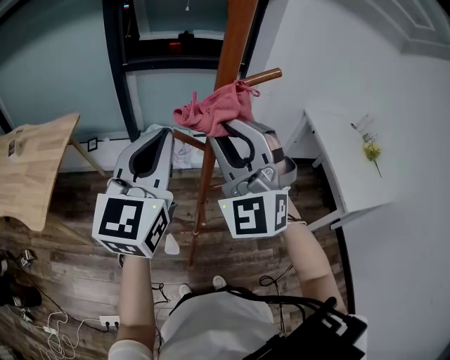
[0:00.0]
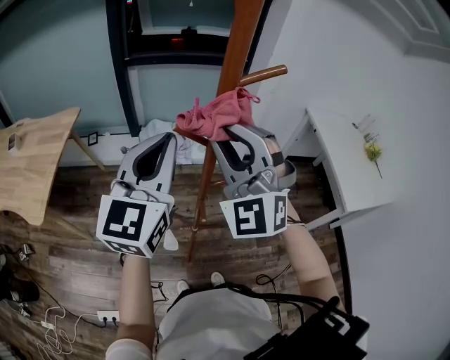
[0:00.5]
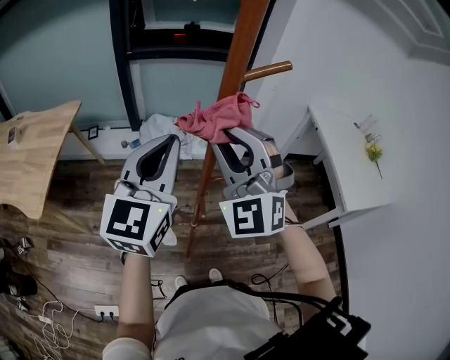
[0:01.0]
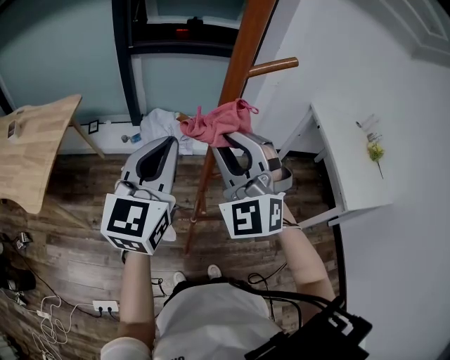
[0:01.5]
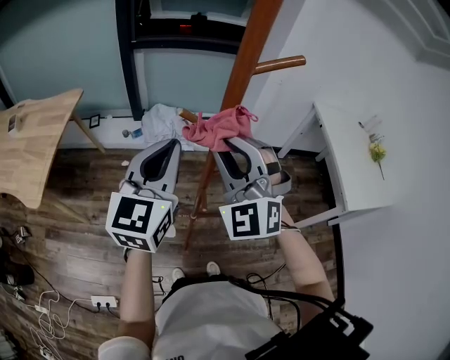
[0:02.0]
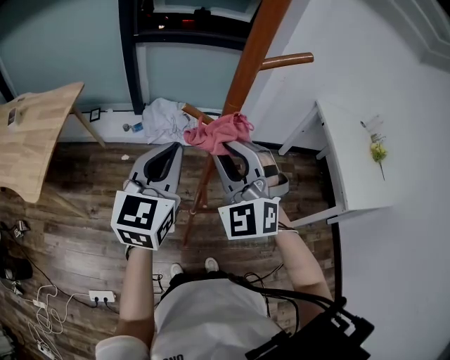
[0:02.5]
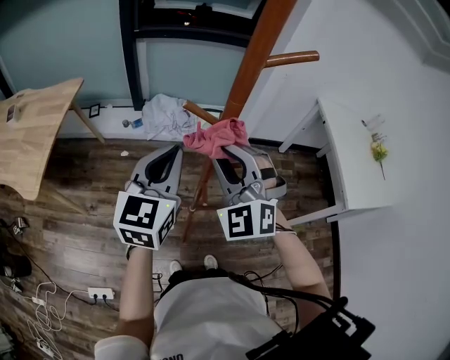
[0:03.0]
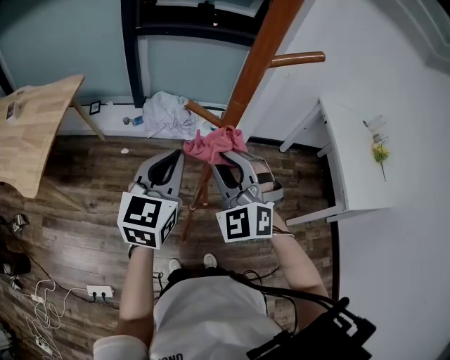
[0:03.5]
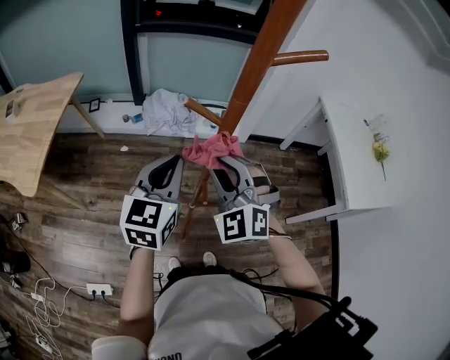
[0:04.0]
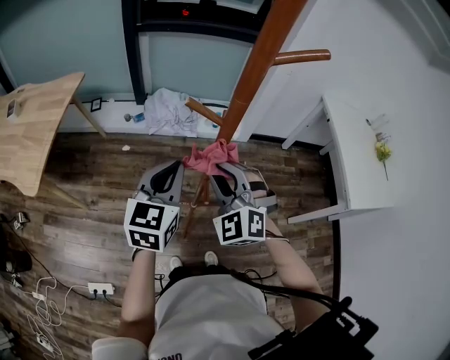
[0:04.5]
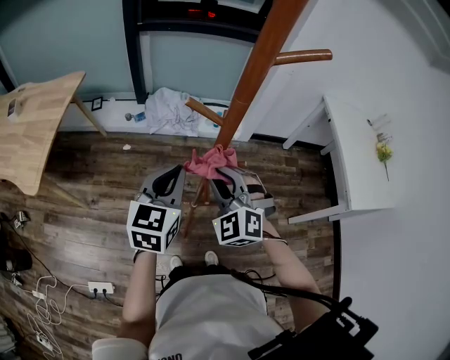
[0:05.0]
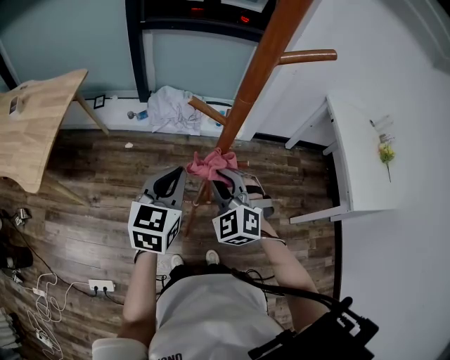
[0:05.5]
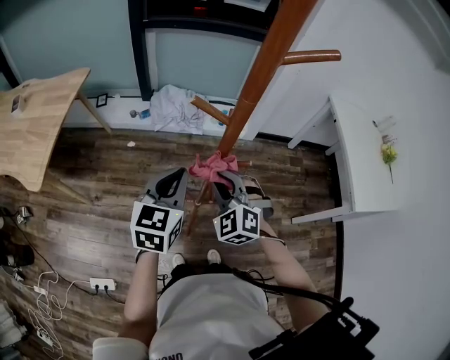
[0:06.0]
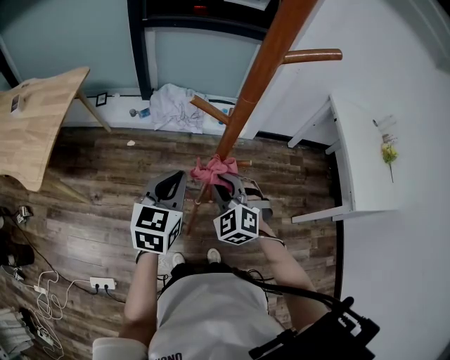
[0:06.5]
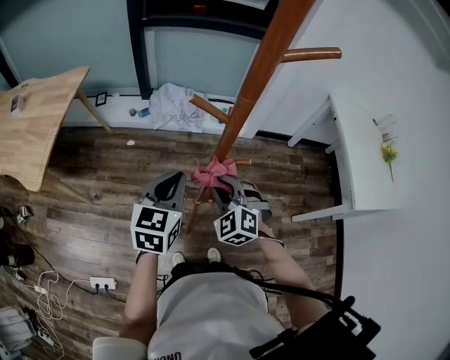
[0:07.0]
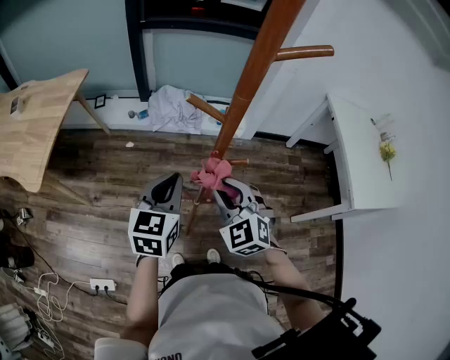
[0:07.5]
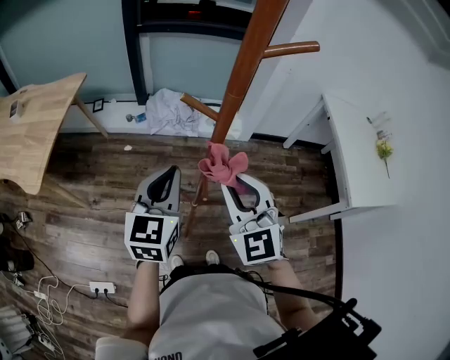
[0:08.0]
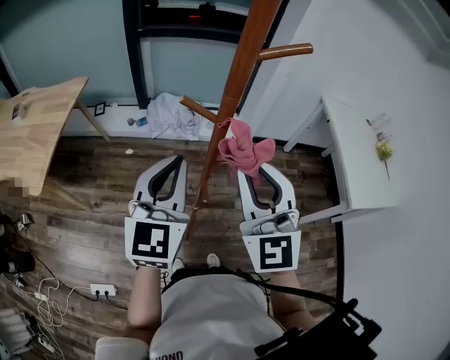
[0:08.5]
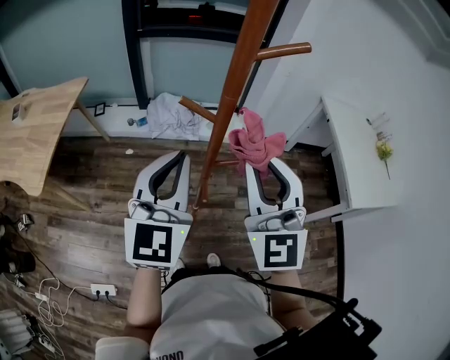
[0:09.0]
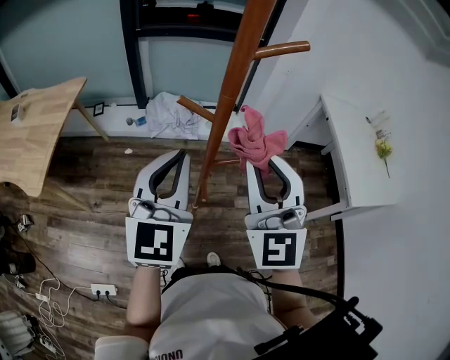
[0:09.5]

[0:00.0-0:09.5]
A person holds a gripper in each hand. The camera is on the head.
0:00.0 to 0:02.0: Both grippers move downward, approximately 10 cm.
0:02.0 to 0:04.0: Both grippers move downward, about 10 cm.
0:04.0 to 0:05.5: The right gripper goes about 10 cm downward.
0:05.5 to 0:07.5: The grippers move only a little.
0:07.5 to 0:09.5: The grippers both shift upward by roughly 20 cm. The right gripper angles its fingers upward, by approximately 40 degrees. Meanwhile the left gripper swivels about 30 degrees.

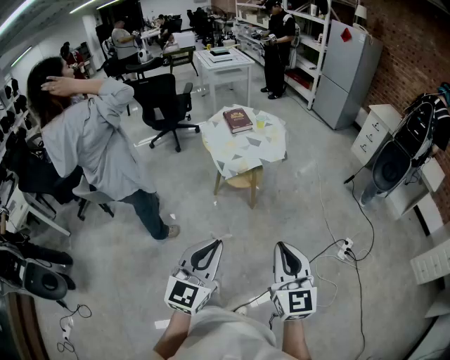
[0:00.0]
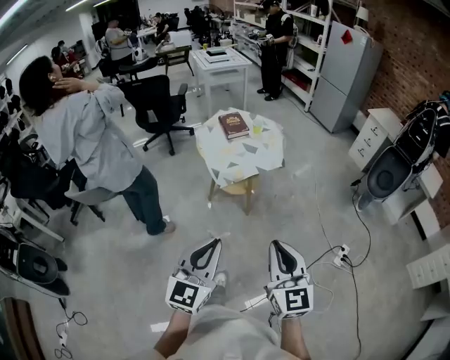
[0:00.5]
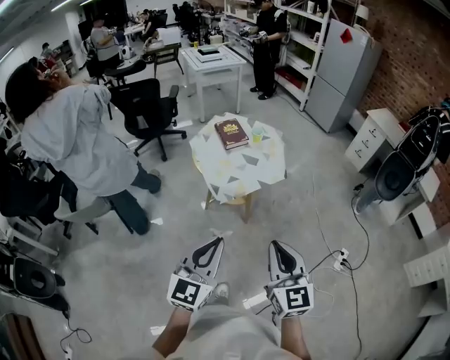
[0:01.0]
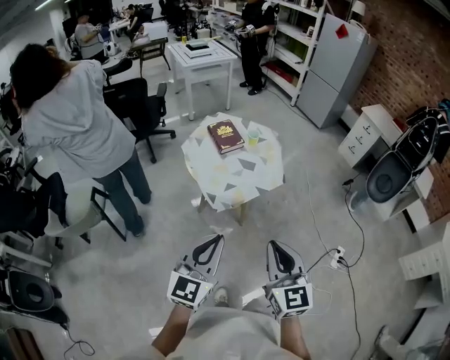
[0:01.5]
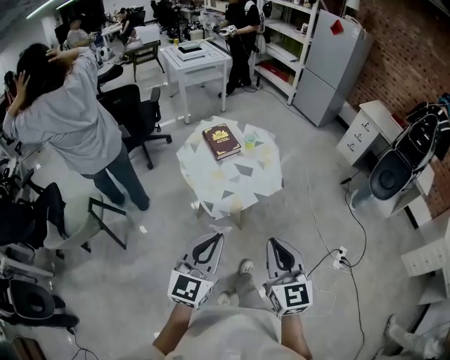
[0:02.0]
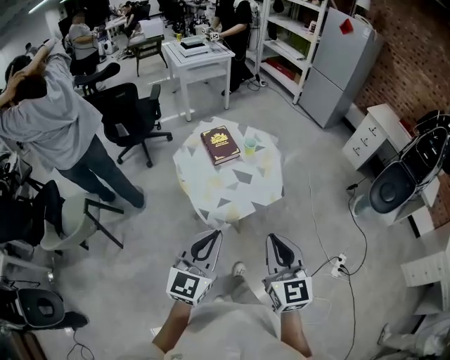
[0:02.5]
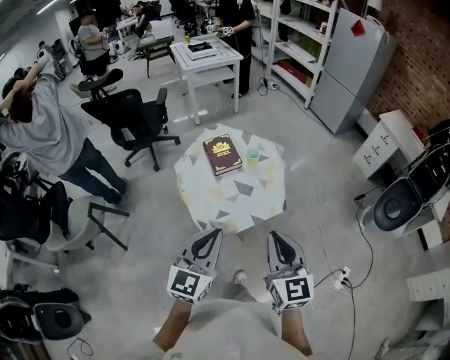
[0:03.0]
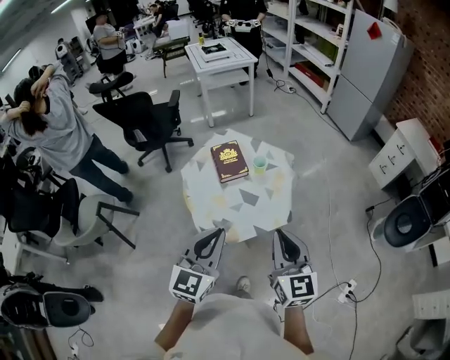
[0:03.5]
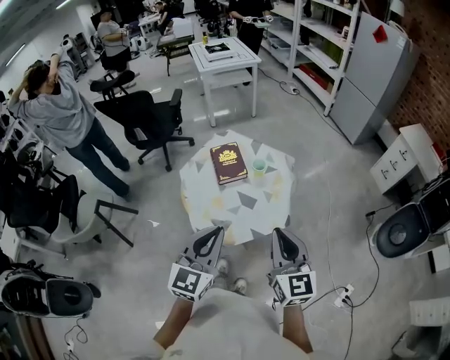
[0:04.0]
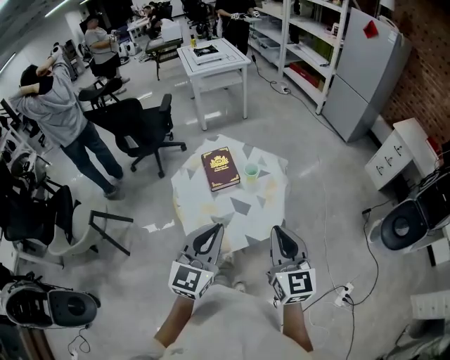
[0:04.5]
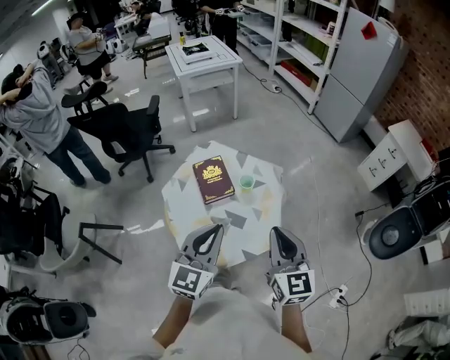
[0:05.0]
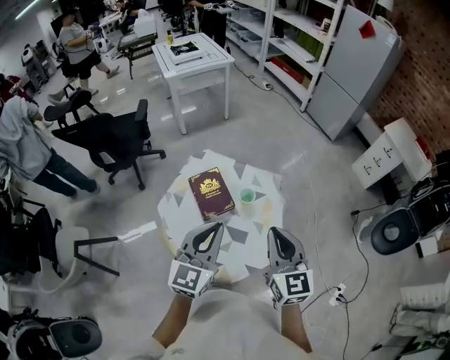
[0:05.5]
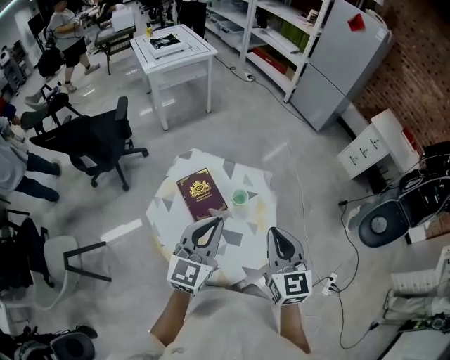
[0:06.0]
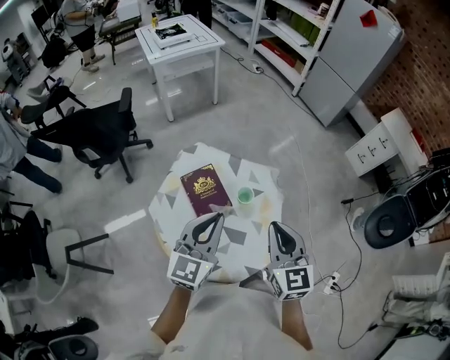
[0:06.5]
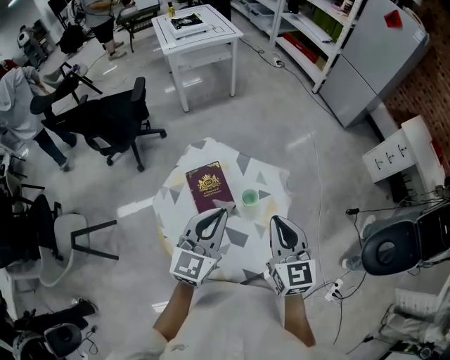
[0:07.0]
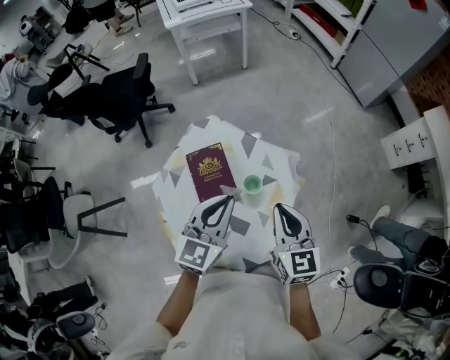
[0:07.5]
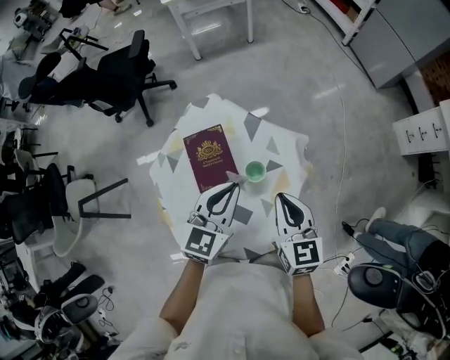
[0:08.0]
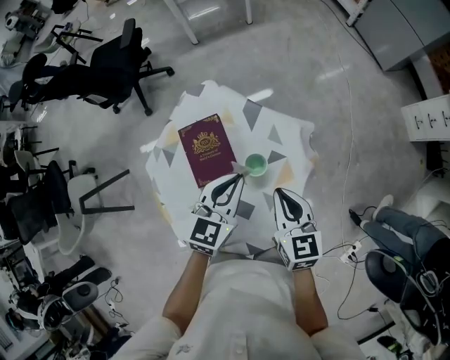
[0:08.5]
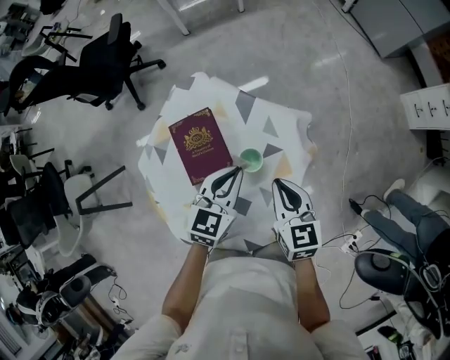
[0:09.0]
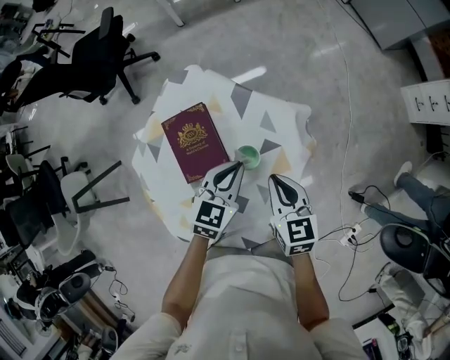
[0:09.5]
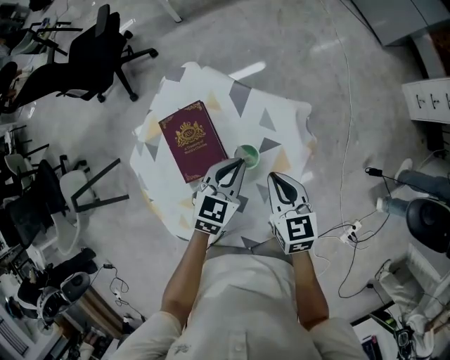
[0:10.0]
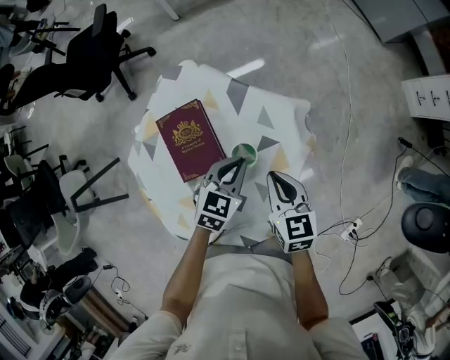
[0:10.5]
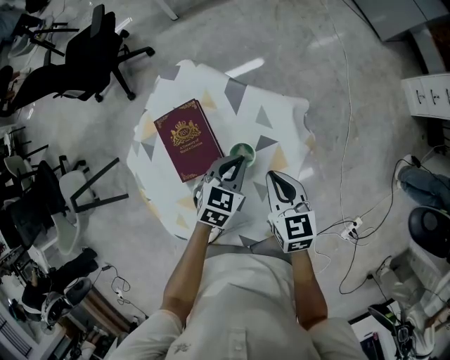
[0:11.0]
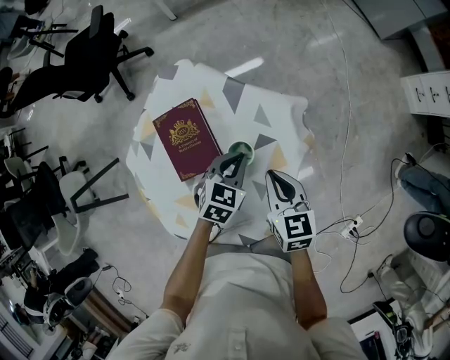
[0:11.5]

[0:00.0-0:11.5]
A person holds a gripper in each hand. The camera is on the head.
0:00.0 to 0:02.0: Both grippers move forward, approximately 30 cm.
0:02.0 to 0:04.0: The left gripper travels forward and to the right by roughly 25 cm, while the right gripper travels forward by about 25 cm.
0:04.0 to 0:06.0: Both grippers travel together forward, some 25 cm.
0:06.0 to 0:07.5: Both grippers travel together forward and downward, roughly 15 cm.
0:07.5 to 0:09.5: The two grippers go approximately 20 cm downward. The left gripper rotates about 20 degrees.
0:09.5 to 0:11.5: The left gripper travels downward by about 5 cm.

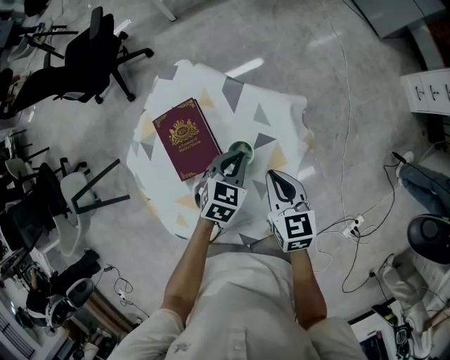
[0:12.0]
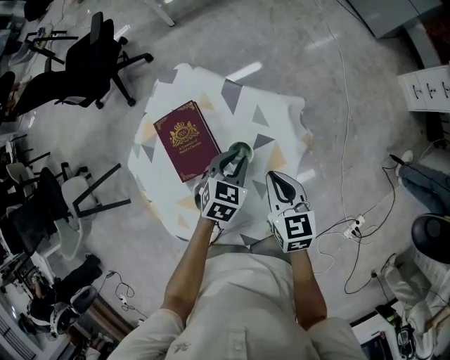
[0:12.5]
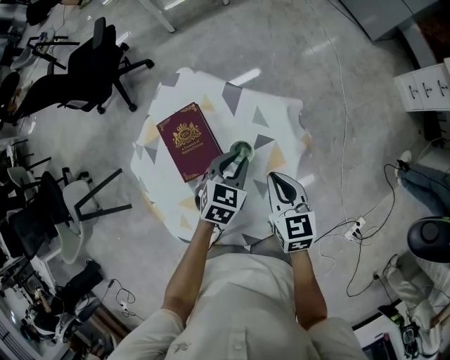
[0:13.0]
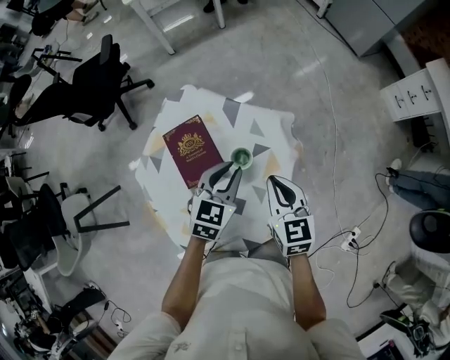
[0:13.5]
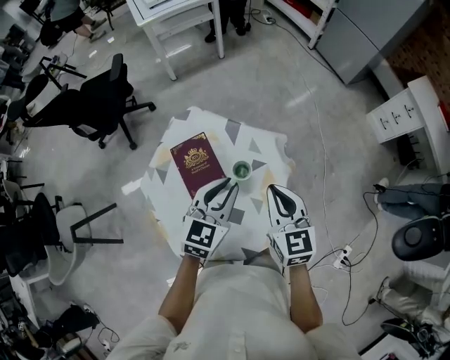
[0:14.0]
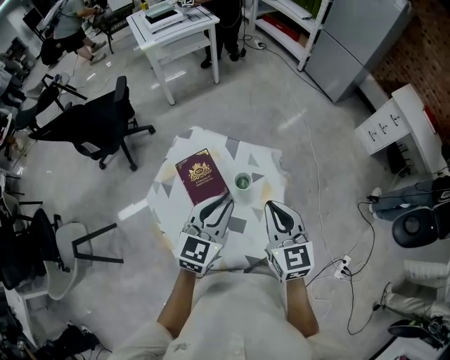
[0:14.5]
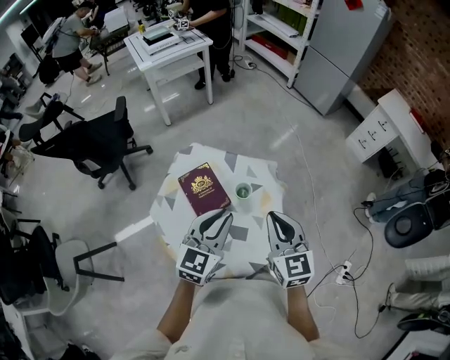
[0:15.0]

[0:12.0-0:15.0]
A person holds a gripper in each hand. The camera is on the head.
0:12.0 to 0:13.5: The left gripper moves upward, roughly 10 cm, while the right gripper goes roughly 10 cm upward.
0:13.5 to 0:15.0: Both grippers travel together upward and backward, about 20 cm. The left gripper changes its angle by roughly 20 degrees.

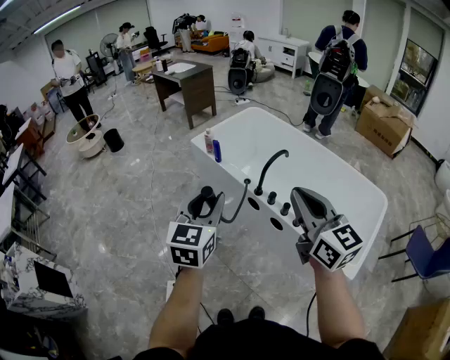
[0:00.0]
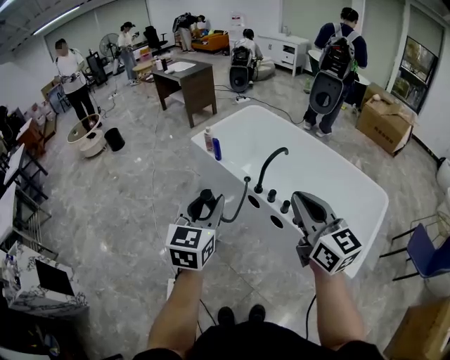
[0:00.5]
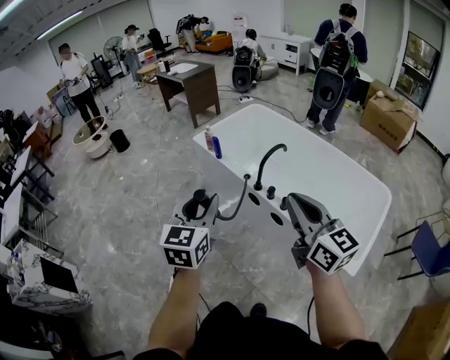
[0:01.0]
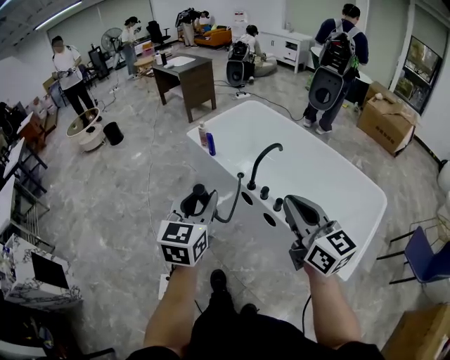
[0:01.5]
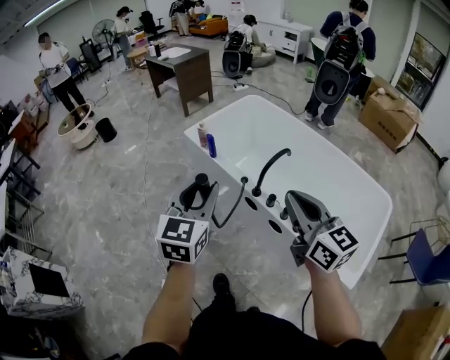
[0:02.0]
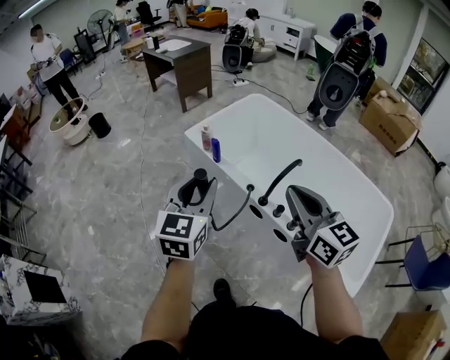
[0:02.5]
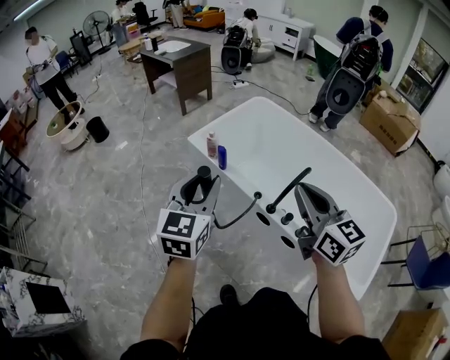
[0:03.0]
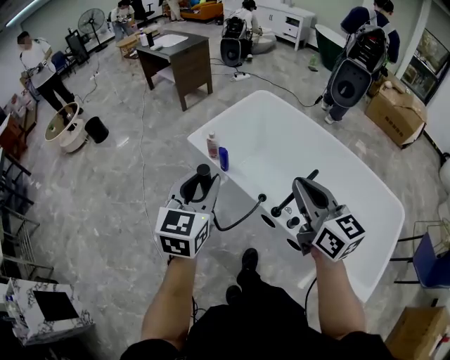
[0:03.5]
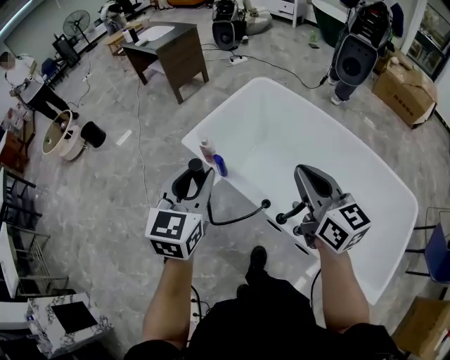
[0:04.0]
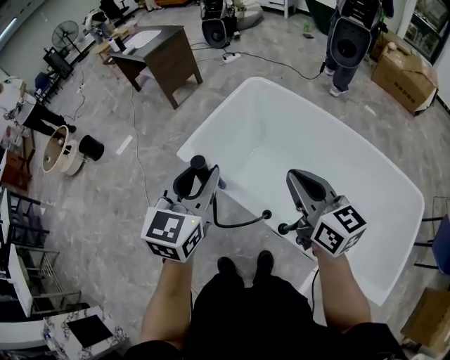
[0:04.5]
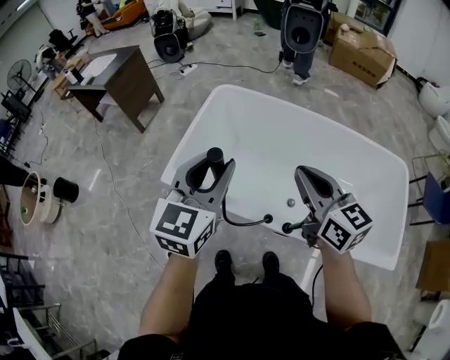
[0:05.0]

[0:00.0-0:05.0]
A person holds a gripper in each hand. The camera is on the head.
0:00.0 to 0:02.5: Both grippers travel together forward, approximately 20 cm.
0:02.5 to 0:05.0: The right gripper ends up some 30 cm from where it was, and rotates approximately 20 degrees. Meanwhile the left gripper ends up about 35 cm from where it was, and changes its angle by approximately 30 degrees.
